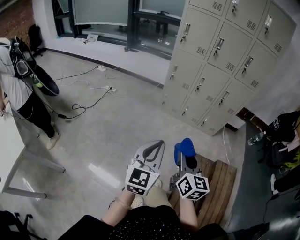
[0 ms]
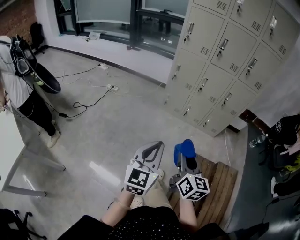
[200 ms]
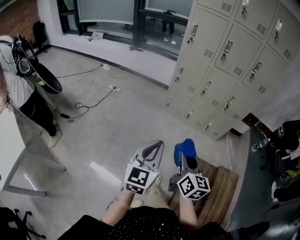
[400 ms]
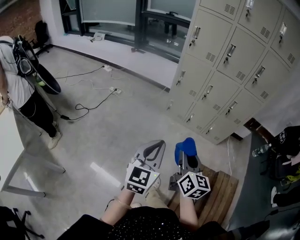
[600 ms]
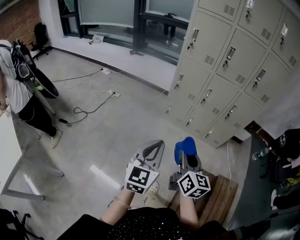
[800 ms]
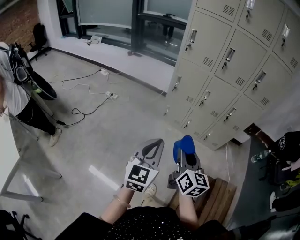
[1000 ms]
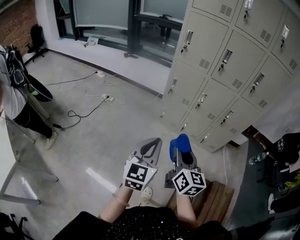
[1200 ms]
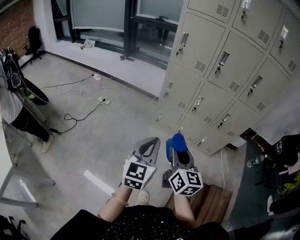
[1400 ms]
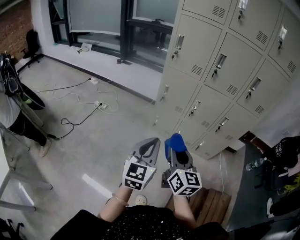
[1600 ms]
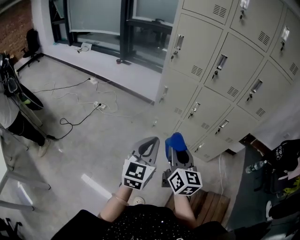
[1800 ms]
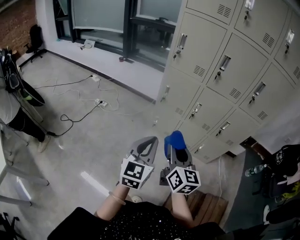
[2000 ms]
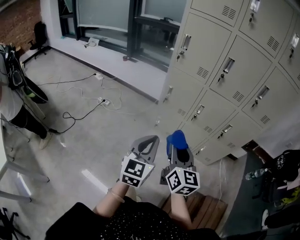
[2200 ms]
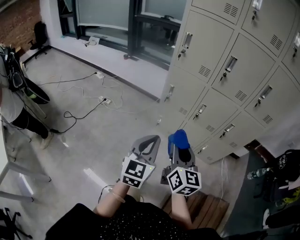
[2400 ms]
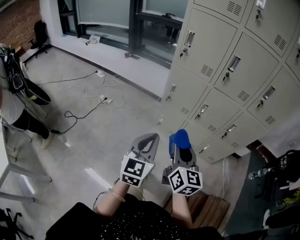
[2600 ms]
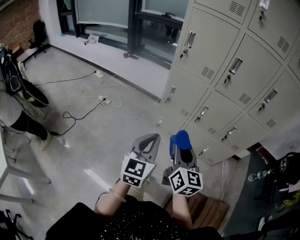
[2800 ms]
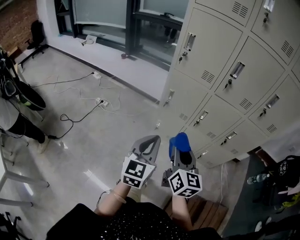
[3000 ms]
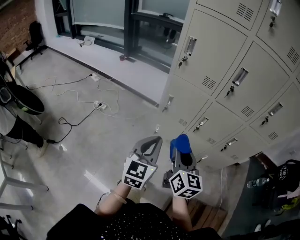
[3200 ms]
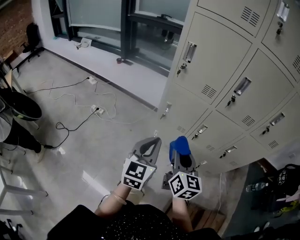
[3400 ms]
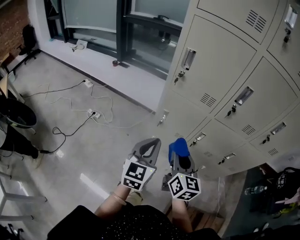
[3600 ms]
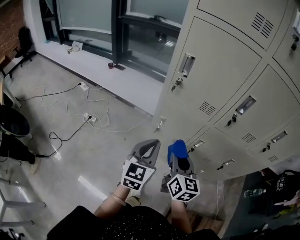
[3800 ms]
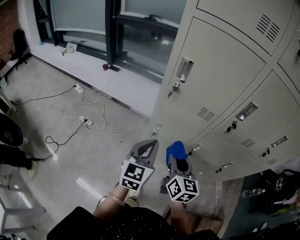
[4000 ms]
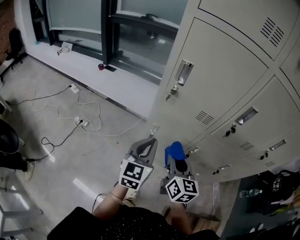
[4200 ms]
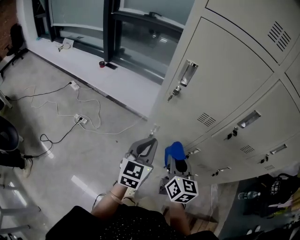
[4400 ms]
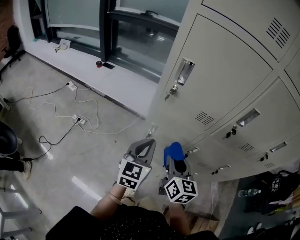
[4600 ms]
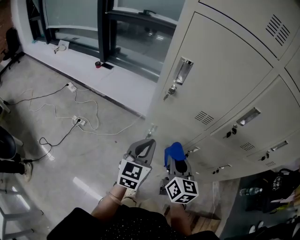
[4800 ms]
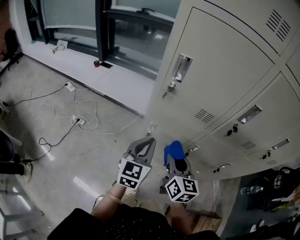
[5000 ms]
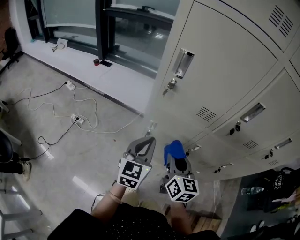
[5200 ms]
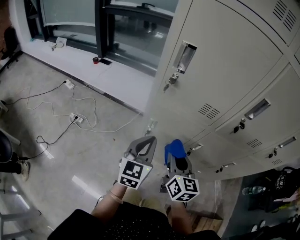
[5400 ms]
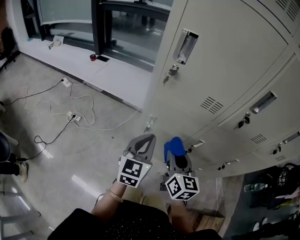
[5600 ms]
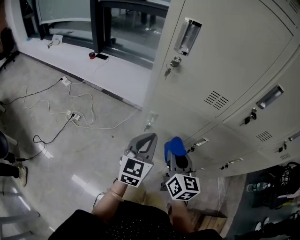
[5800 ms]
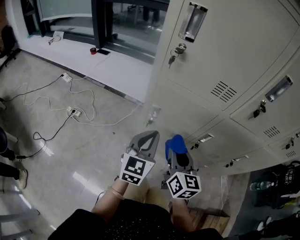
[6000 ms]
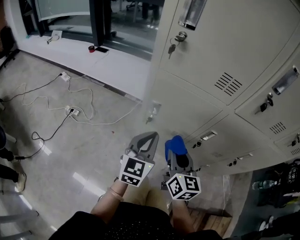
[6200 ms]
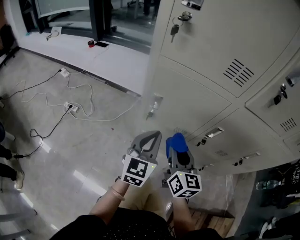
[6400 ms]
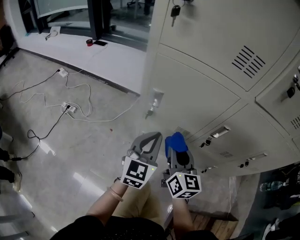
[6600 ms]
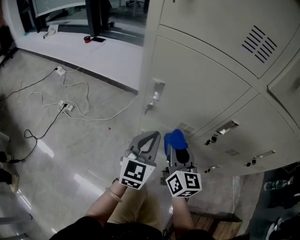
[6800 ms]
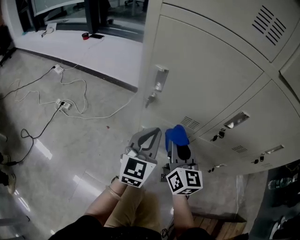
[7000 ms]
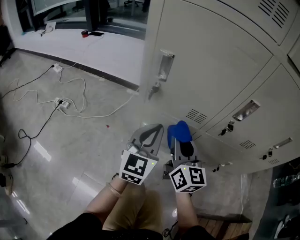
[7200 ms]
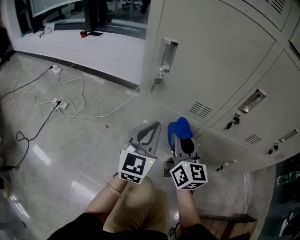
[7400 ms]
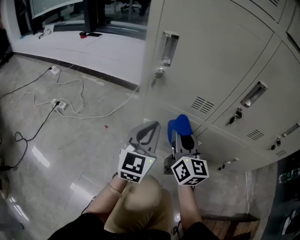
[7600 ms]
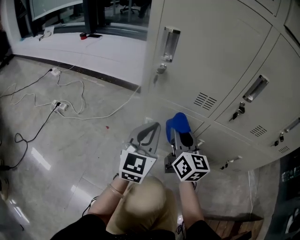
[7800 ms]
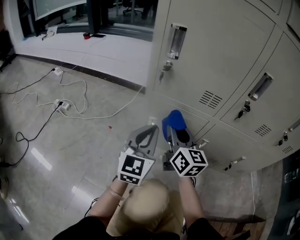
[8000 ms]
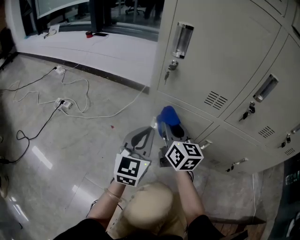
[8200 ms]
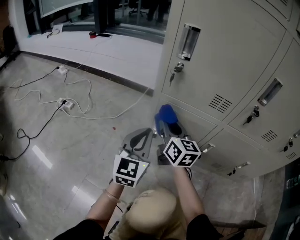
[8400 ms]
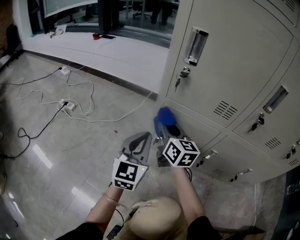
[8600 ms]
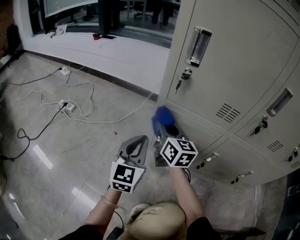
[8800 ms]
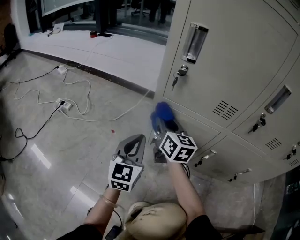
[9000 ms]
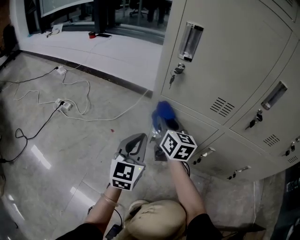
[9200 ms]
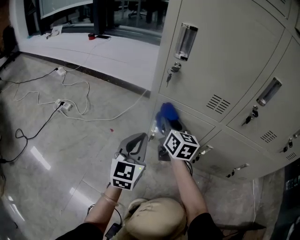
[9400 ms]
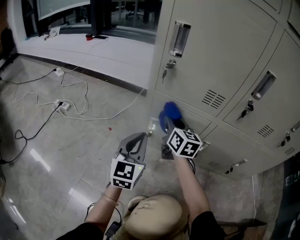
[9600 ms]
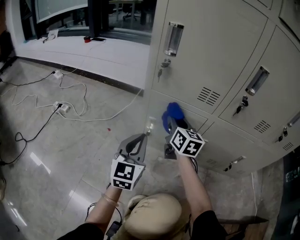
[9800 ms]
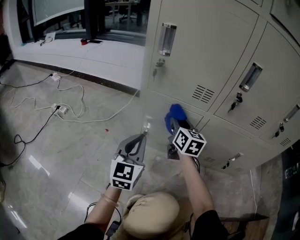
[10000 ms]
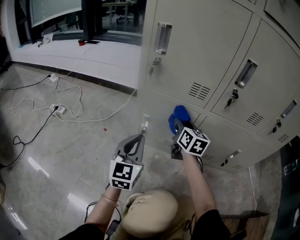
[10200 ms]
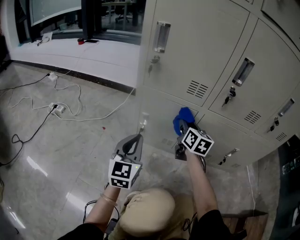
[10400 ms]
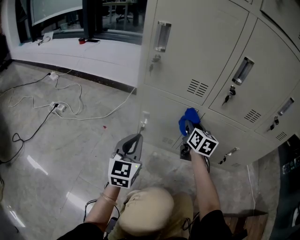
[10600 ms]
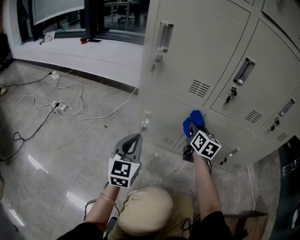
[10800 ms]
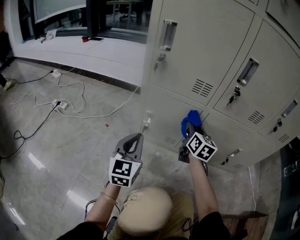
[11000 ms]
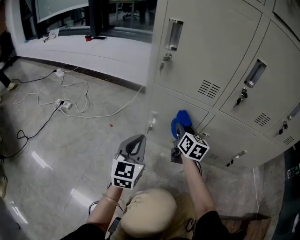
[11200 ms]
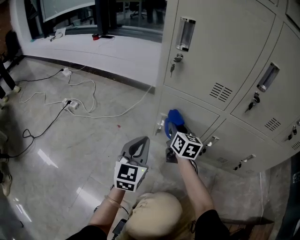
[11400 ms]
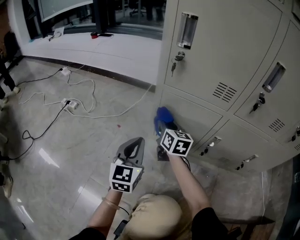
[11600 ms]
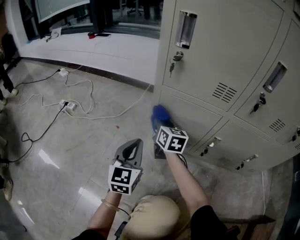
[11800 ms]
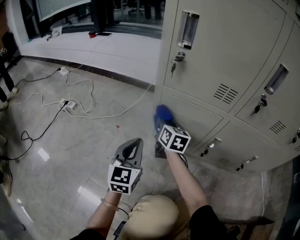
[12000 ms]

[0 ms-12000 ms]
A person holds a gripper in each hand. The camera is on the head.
0 ms to 1600 ms: Both grippers move forward, approximately 30 cm.
1600 ms to 3000 ms: Both grippers travel together forward, about 15 cm.
3000 ms to 4400 ms: The two grippers go about 30 cm forward.
4400 ms to 6000 ms: The two grippers go roughly 15 cm downward.
6000 ms to 7600 ms: Both grippers move downward, about 30 cm.
7600 ms to 9000 ms: The left gripper goes about 15 cm downward and to the left. The right gripper heads to the left, forward and downward, covering roughly 20 cm.
9000 ms to 10400 ms: The left gripper heads backward and to the right, covering some 10 cm; the right gripper moves to the right, approximately 20 cm.
10400 ms to 12000 ms: The right gripper moves to the left, roughly 20 cm, while the left gripper is displaced to the left by some 5 cm.

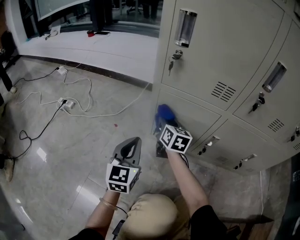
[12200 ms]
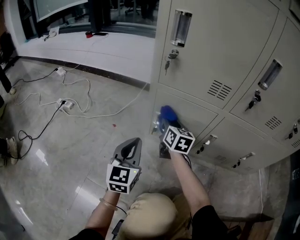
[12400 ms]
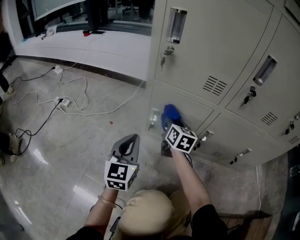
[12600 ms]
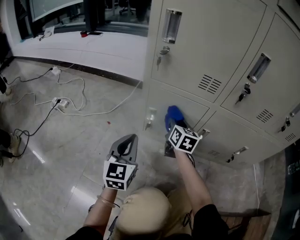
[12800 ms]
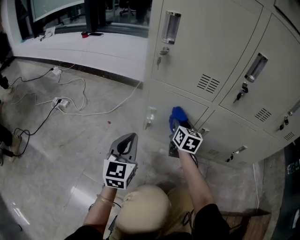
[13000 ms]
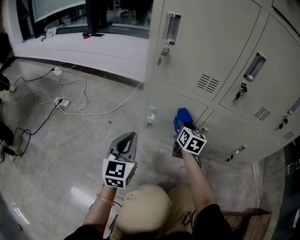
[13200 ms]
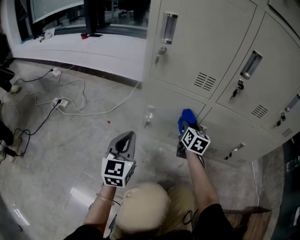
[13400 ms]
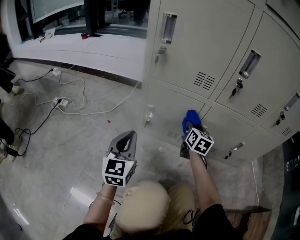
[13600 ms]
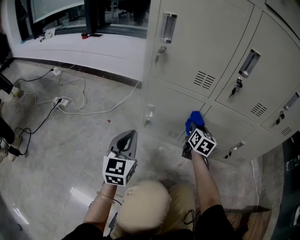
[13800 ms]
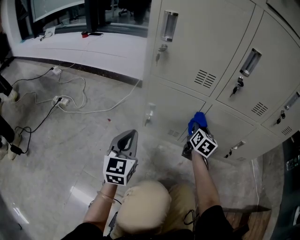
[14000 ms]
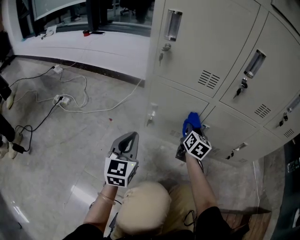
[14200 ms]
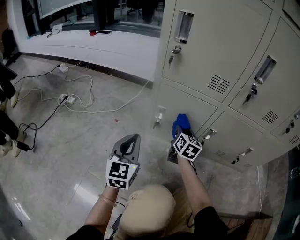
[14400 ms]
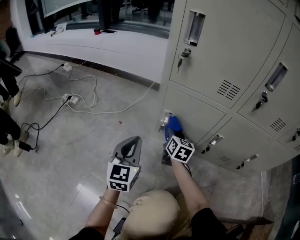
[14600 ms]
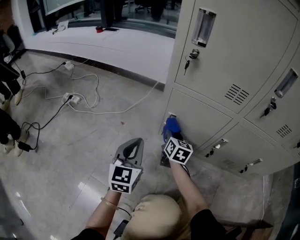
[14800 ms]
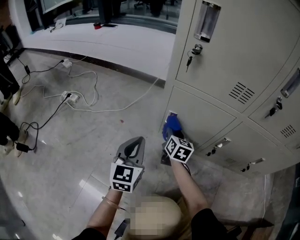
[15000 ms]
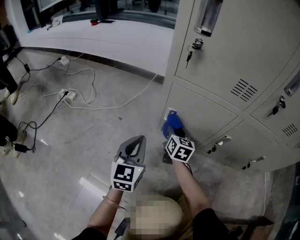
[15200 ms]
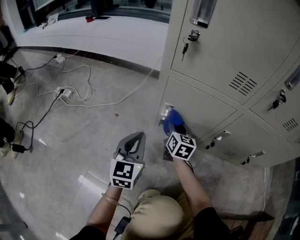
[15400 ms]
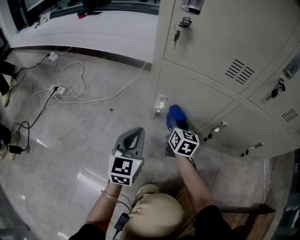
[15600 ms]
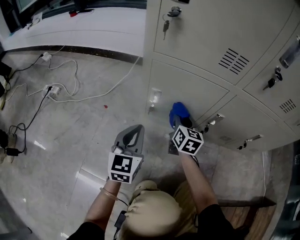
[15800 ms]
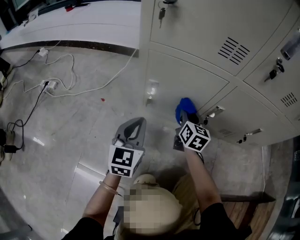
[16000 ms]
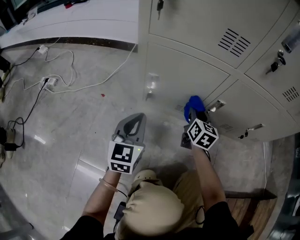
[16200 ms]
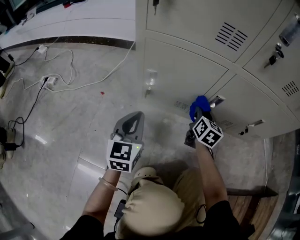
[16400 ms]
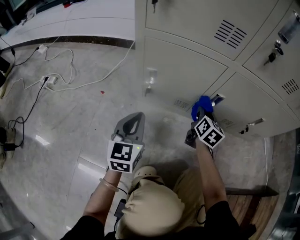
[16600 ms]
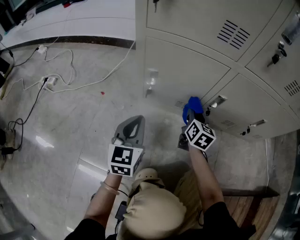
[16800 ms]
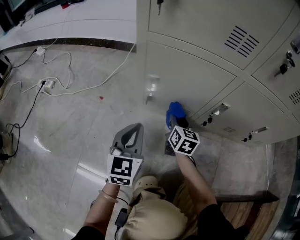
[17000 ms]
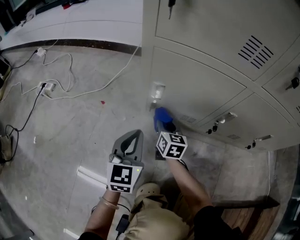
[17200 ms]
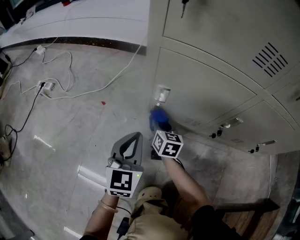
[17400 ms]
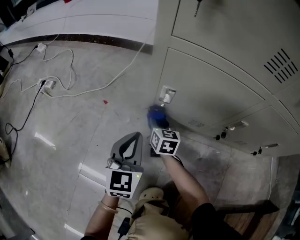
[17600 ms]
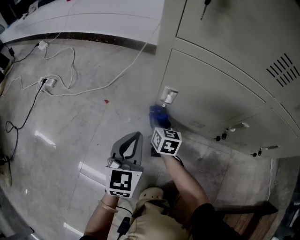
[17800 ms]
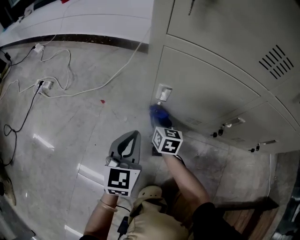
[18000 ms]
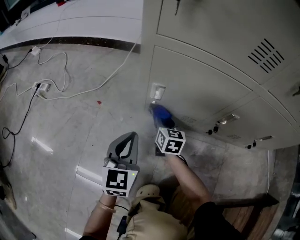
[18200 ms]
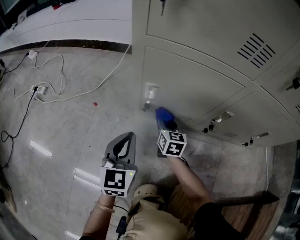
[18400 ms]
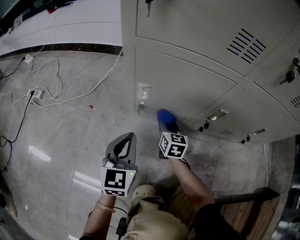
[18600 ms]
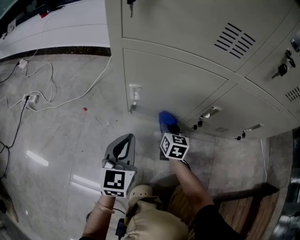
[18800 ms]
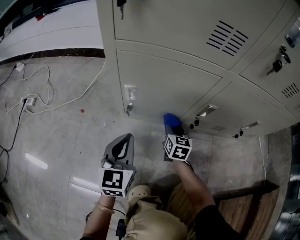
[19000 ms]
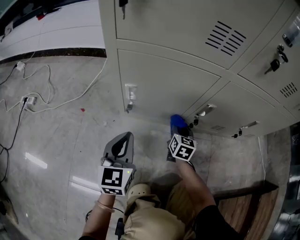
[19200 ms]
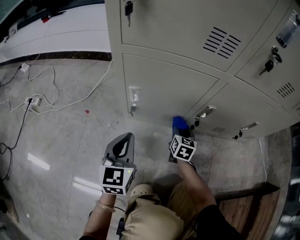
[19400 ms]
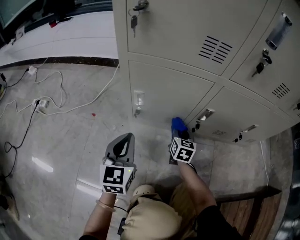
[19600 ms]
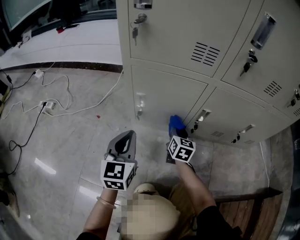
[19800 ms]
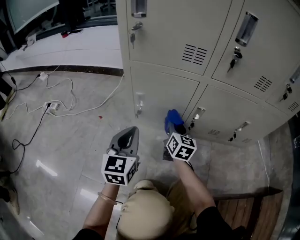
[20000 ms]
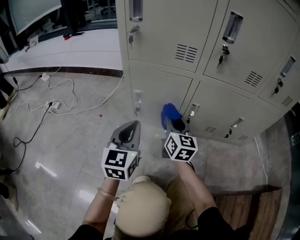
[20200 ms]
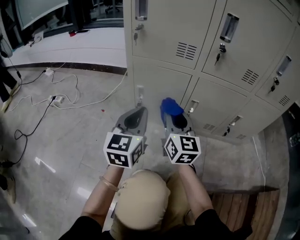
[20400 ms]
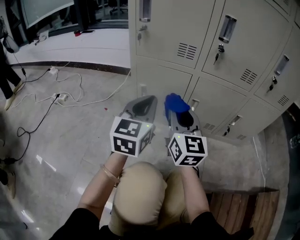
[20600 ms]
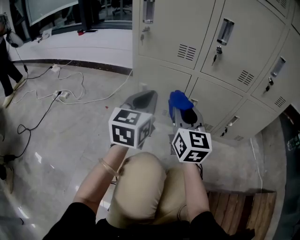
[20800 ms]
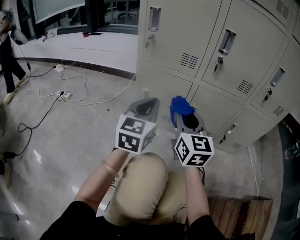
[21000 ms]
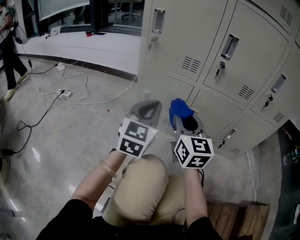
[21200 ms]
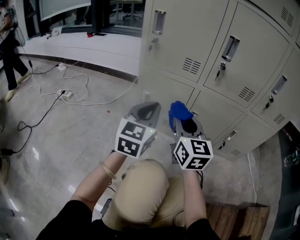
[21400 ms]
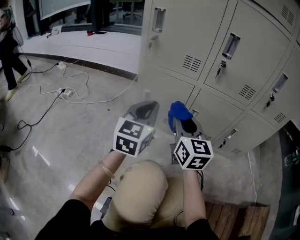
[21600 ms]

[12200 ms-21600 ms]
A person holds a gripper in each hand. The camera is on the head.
12200 ms to 13800 ms: The left gripper changes place by about 5 cm; the right gripper is displaced to the right by some 20 cm, and swivels roughly 20 degrees.
13800 ms to 15400 ms: The right gripper heads to the left and downward, covering approximately 20 cm, while the left gripper travels downward and forward by approximately 10 cm.
15400 ms to 17000 ms: The left gripper moves downward and to the right, approximately 10 cm. Meanwhile the right gripper heads to the right and downward, covering about 10 cm.
17000 ms to 18400 ms: The right gripper reaches approximately 15 cm to the left, then returns.
18400 ms to 20000 ms: Both grippers move upward and to the right, some 15 cm.
20000 ms to 21600 ms: The left gripper is displaced upward and to the right by some 15 cm, while the right gripper is displaced upward and backward by some 25 cm, and rotates roughly 30 degrees.

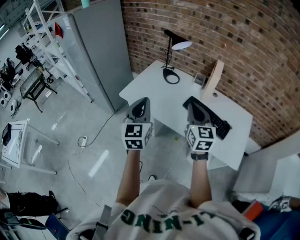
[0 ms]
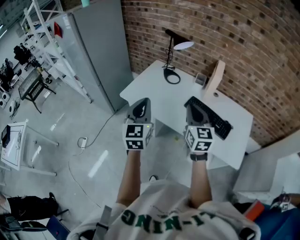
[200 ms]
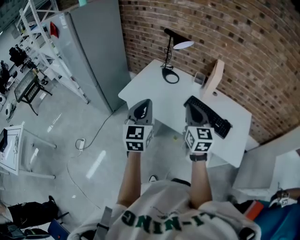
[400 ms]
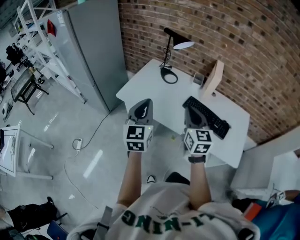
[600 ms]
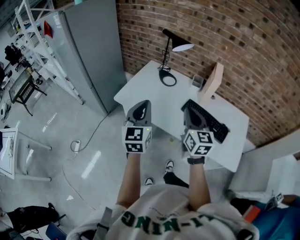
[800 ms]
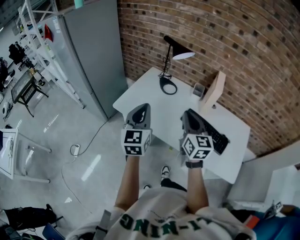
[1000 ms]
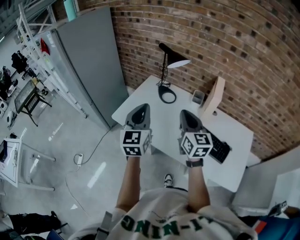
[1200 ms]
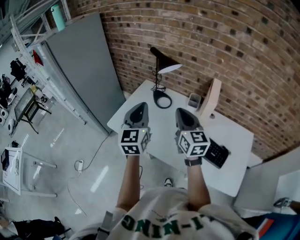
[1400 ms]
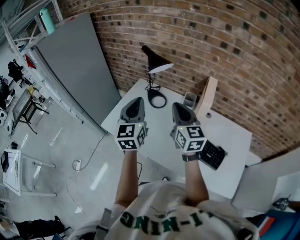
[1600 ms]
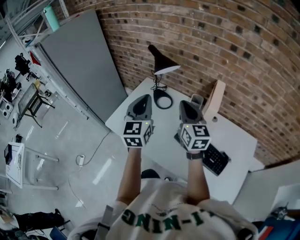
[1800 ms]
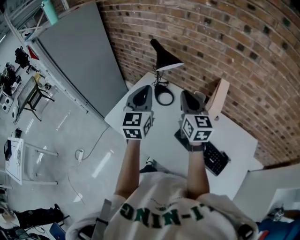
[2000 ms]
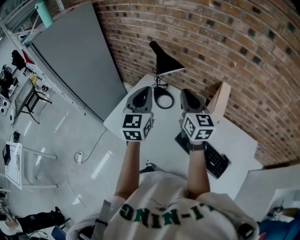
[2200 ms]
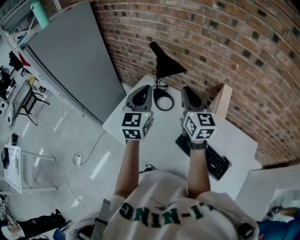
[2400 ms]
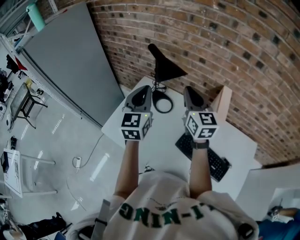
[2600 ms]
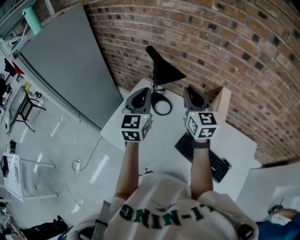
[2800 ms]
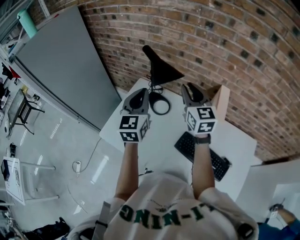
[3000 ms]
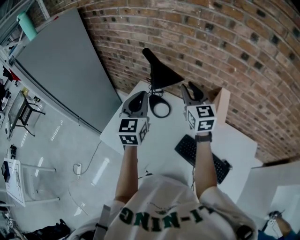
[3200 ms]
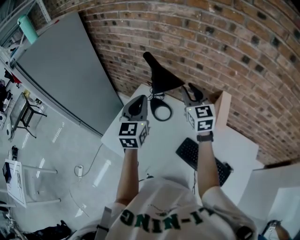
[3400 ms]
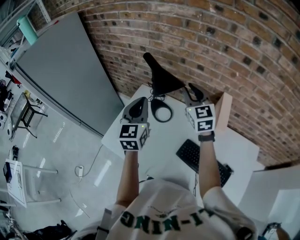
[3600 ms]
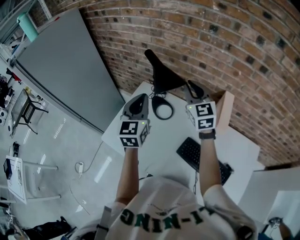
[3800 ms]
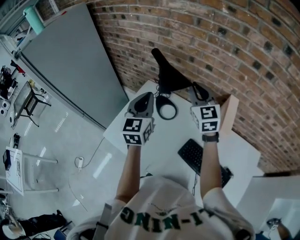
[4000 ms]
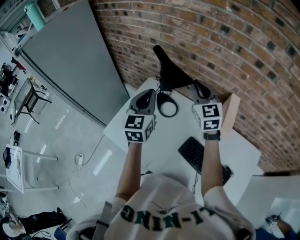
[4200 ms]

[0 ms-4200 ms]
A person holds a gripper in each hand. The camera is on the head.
0 ms to 1400 ms: Both grippers travel together forward, roughly 20 cm.
1400 ms to 2800 ms: Both grippers move forward, some 20 cm.
2800 ms to 4200 ms: The right gripper goes roughly 5 cm forward.
